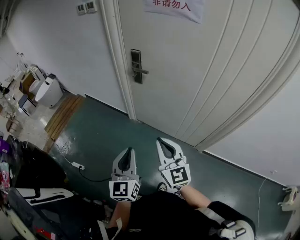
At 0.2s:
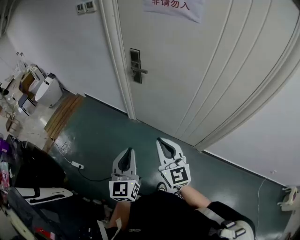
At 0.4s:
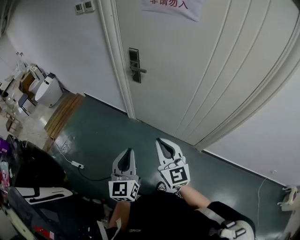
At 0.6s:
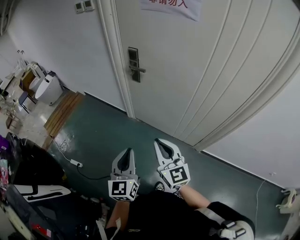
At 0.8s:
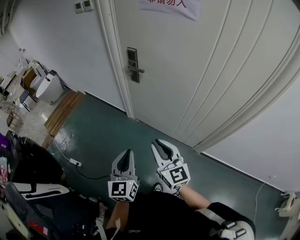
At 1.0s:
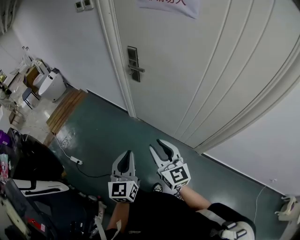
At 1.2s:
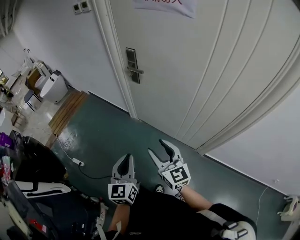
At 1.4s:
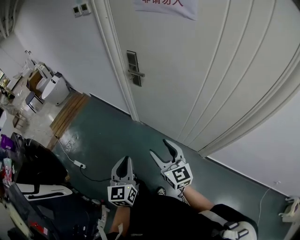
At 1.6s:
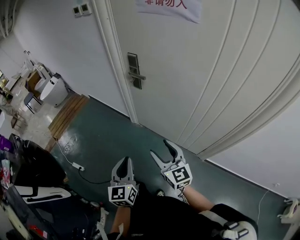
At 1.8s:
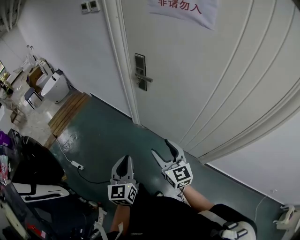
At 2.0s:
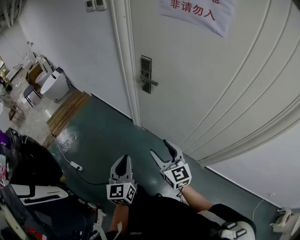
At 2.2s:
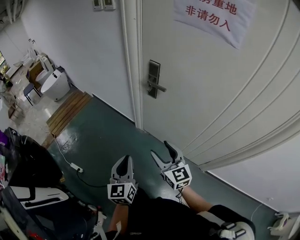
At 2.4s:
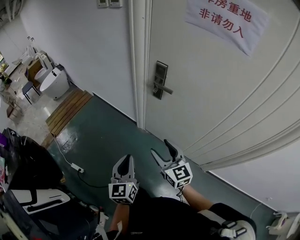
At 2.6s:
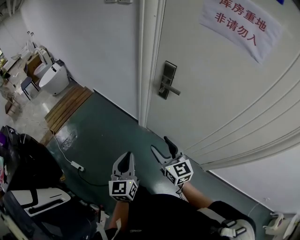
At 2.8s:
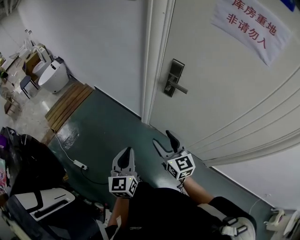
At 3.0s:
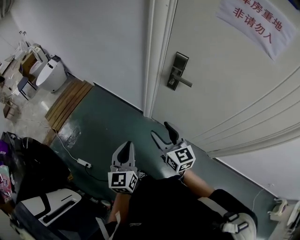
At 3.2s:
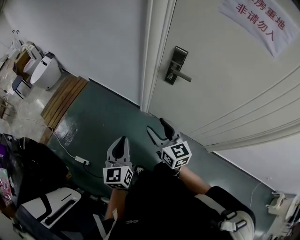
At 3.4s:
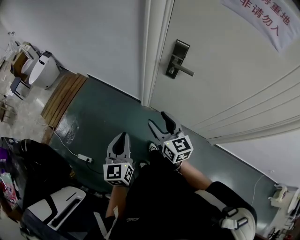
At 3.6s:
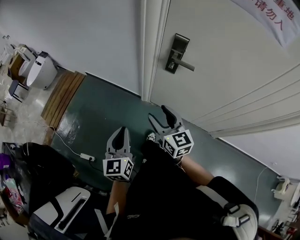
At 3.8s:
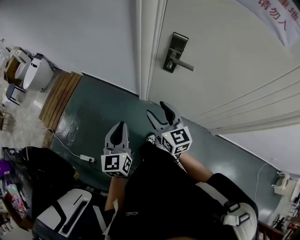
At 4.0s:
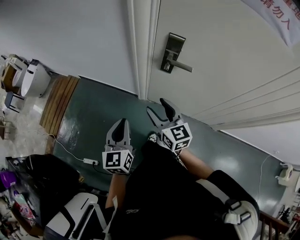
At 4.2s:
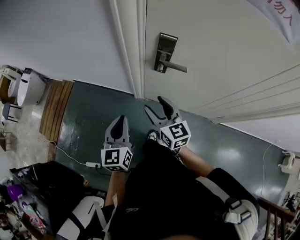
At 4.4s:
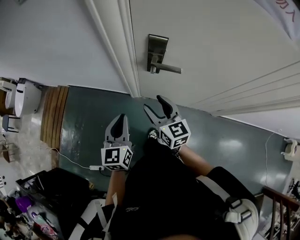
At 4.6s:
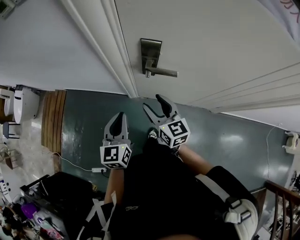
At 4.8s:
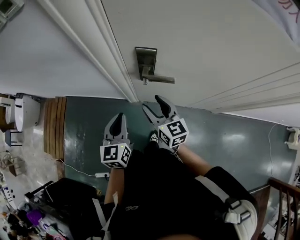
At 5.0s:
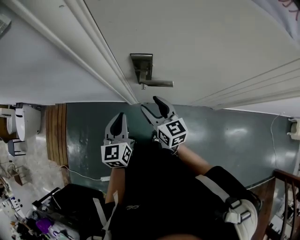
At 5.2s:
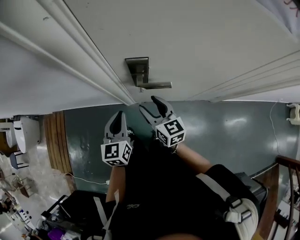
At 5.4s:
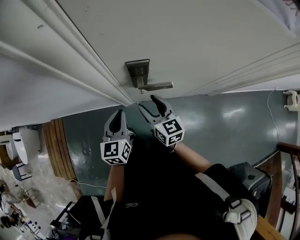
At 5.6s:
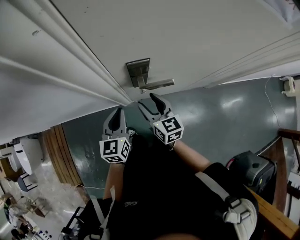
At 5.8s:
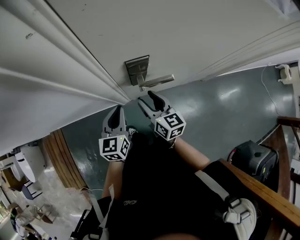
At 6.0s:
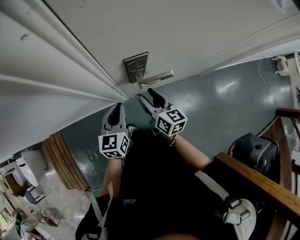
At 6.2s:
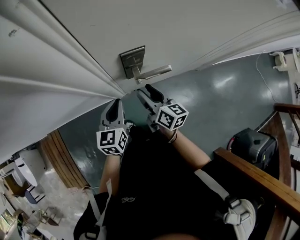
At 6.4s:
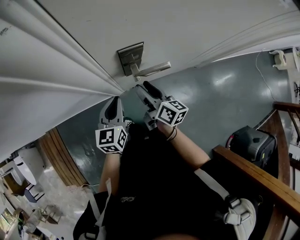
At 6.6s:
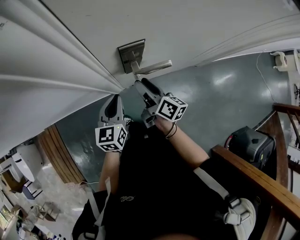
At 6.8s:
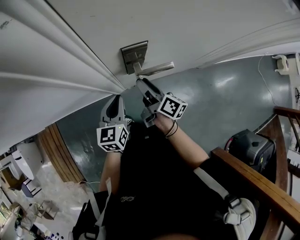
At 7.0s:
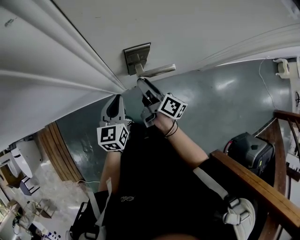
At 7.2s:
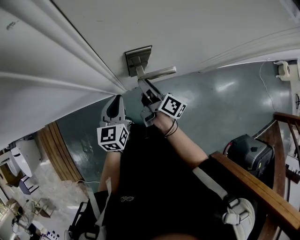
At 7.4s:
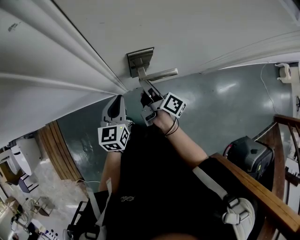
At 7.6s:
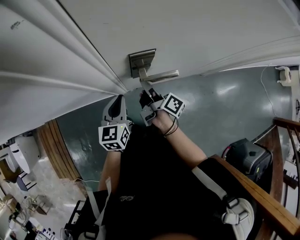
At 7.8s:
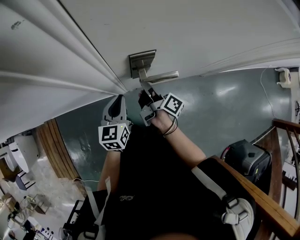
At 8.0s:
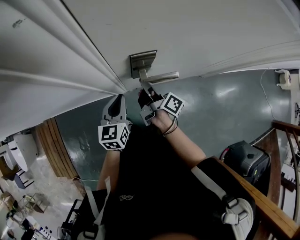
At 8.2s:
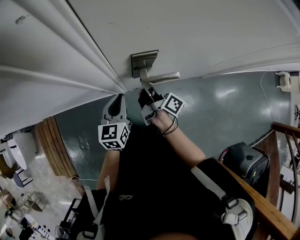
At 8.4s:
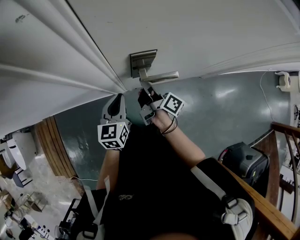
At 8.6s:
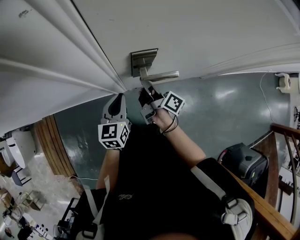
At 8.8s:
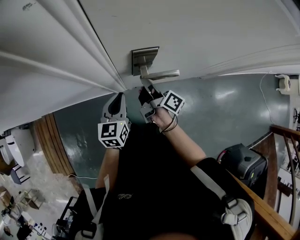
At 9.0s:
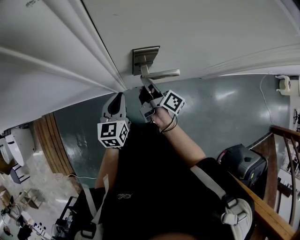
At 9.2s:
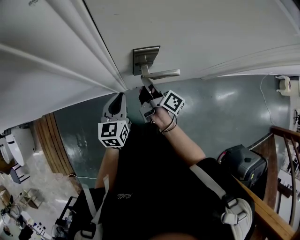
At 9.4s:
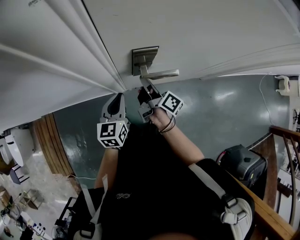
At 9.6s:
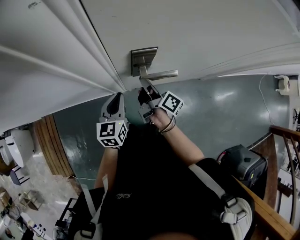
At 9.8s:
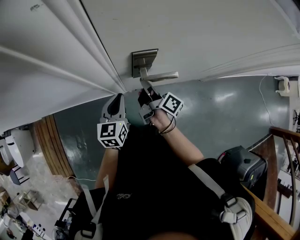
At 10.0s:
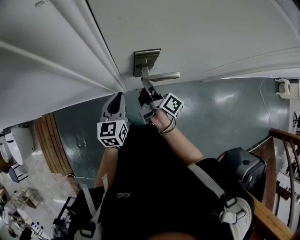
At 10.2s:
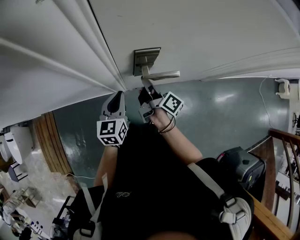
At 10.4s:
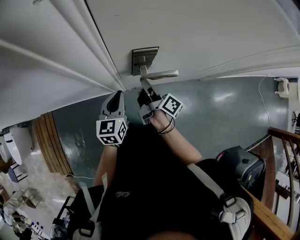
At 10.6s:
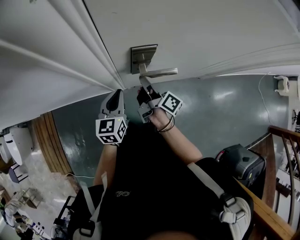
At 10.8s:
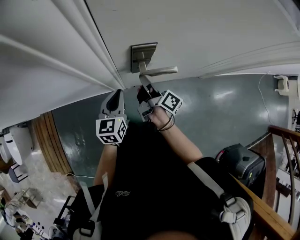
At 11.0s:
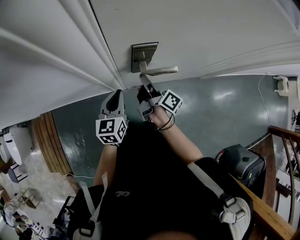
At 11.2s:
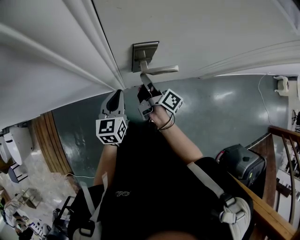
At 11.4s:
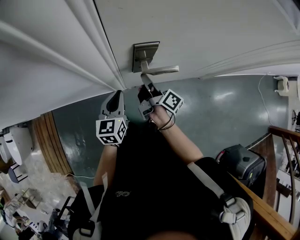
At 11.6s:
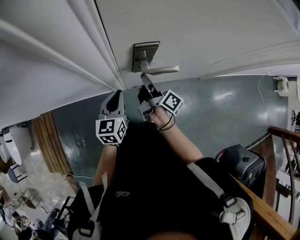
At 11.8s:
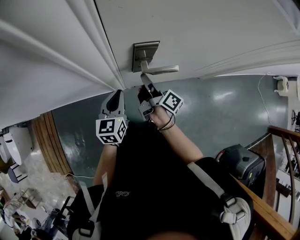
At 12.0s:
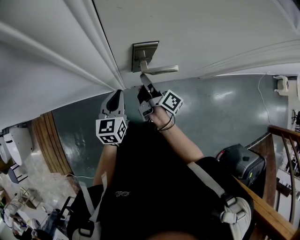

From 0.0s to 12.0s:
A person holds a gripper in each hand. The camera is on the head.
From 0.0s to 1.6s: The right gripper goes roughly 10 cm downward, to the right and forward, and opens, while the left gripper travels downward by about 5 cm.
From 1.6s to 3.0s: Both grippers travel together forward and to the left, some 30 cm.
From 3.0s to 4.4s: Both grippers move forward, some 20 cm. The left gripper swivels roughly 20 degrees. Meanwhile the right gripper rotates about 20 degrees.
From 4.4s to 6.0s: The right gripper ends up some 15 cm from where it was, and turns by some 40 degrees. The left gripper moves about 20 cm, and swivels roughly 30 degrees.
From 6.0s to 7.6s: The right gripper ends up about 5 cm from where it was, and rotates around the line of its fingers by about 50 degrees, clockwise from behind.
From 7.6s to 9.0s: The right gripper closes.
From 9.0s to 10.4s: Both grippers stay put.
From 10.4s to 12.0s: Both grippers stay put.

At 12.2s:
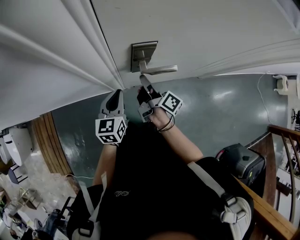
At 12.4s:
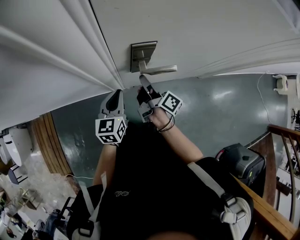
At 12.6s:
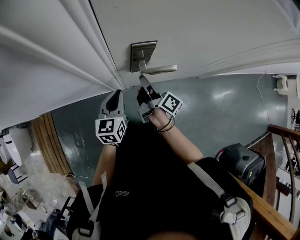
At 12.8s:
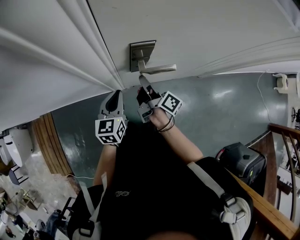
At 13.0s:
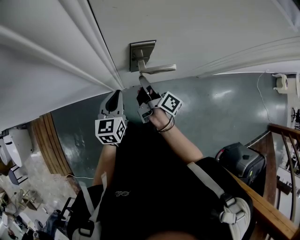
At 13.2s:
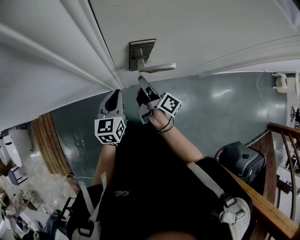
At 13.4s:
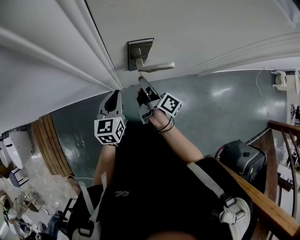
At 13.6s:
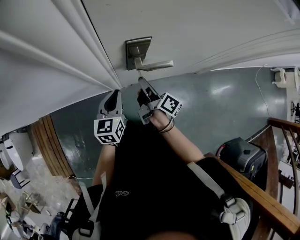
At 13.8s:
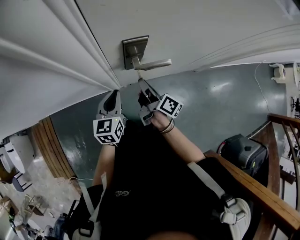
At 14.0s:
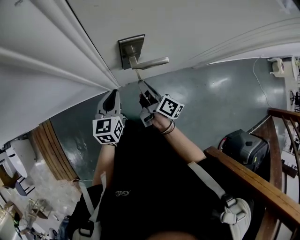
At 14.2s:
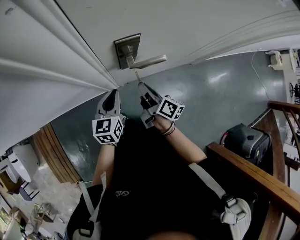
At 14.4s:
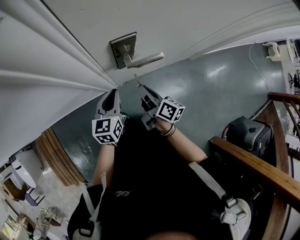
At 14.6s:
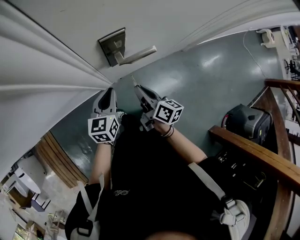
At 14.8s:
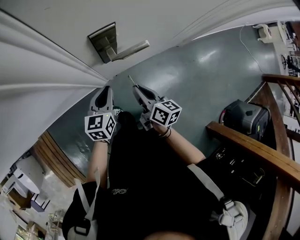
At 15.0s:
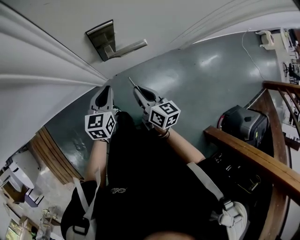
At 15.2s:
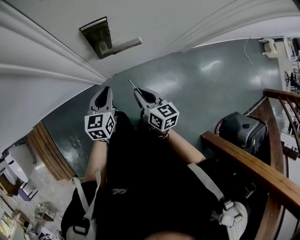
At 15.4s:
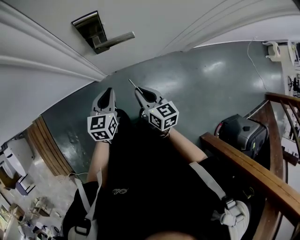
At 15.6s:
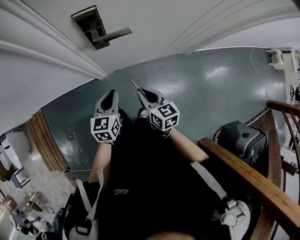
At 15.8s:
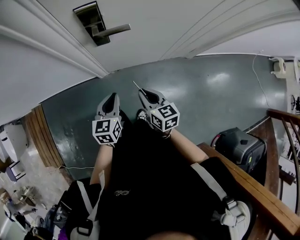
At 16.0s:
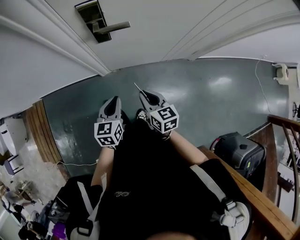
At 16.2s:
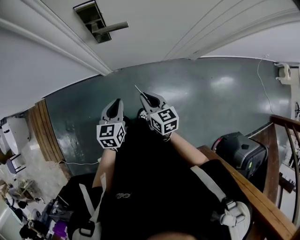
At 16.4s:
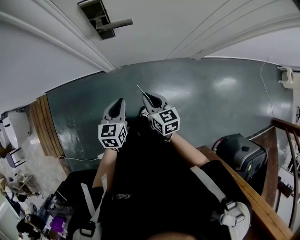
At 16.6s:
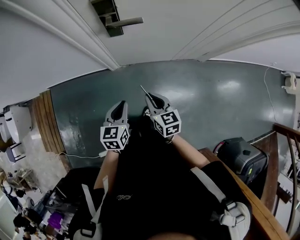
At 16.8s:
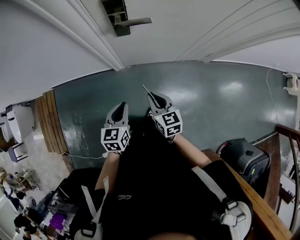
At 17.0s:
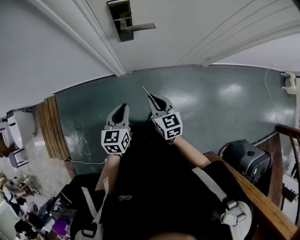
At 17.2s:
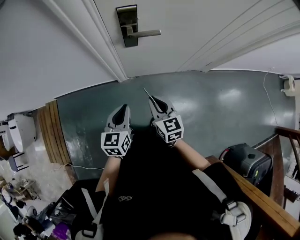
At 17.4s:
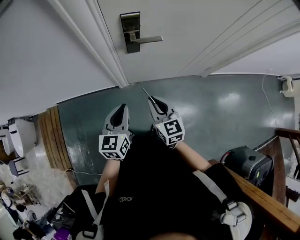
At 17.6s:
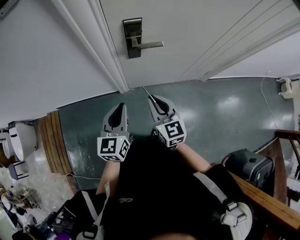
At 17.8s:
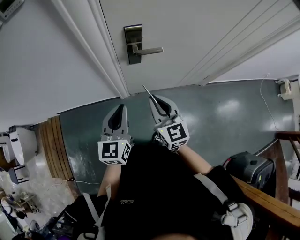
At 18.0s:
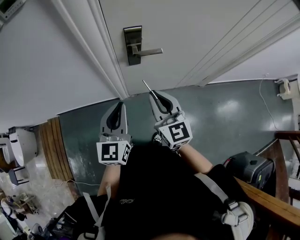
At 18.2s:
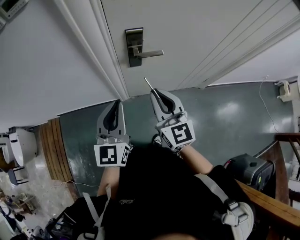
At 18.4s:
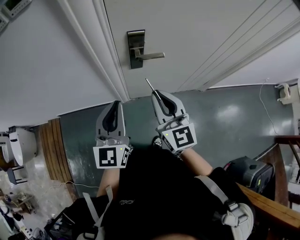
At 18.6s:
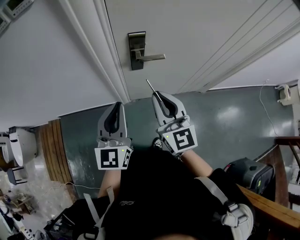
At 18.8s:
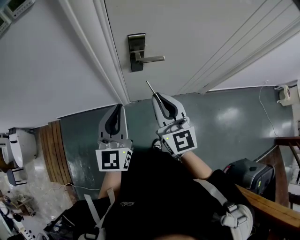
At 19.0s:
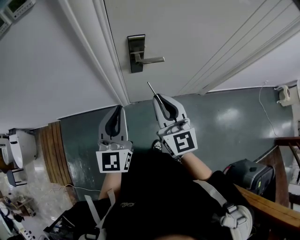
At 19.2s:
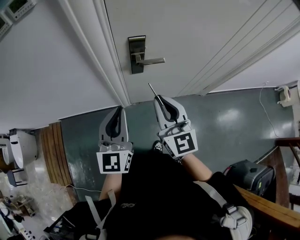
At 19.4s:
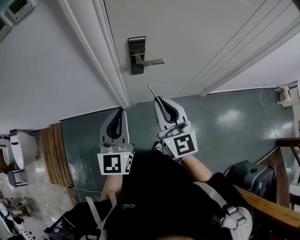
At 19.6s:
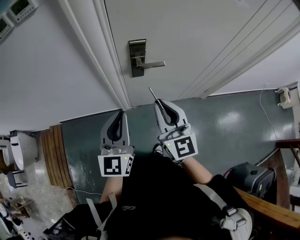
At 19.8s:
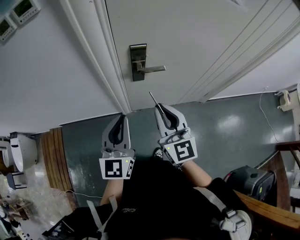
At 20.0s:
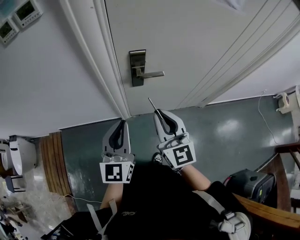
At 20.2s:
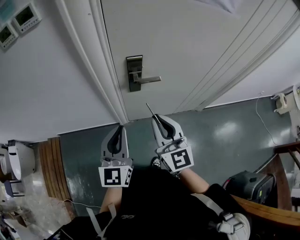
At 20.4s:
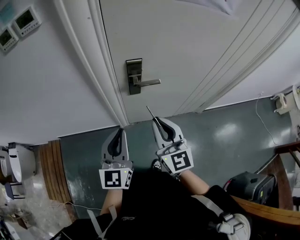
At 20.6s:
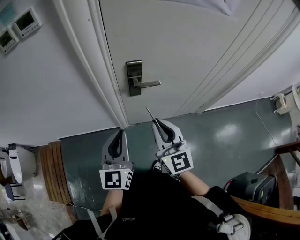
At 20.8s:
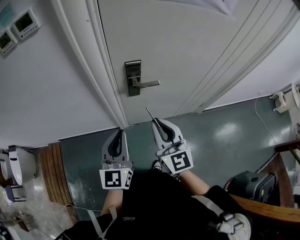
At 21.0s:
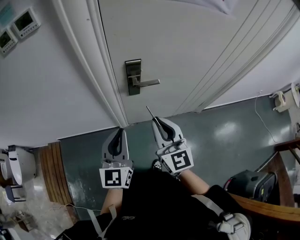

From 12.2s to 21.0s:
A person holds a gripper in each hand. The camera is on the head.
From 12.2s to 13.6s: The grippers make only small movements.
From 13.6s to 15.2s: The right gripper goes about 15 cm backward and to the right, and twists roughly 40 degrees counterclockwise, seen from behind. Meanwhile the left gripper goes roughly 10 cm to the right and backward.
From 15.2s to 16.6s: The right gripper moves backward and to the right, about 15 cm, while the left gripper travels backward by roughly 20 cm.
From 16.6s to 18.0s: The right gripper goes about 20 cm upward, and turns by roughly 30 degrees; the left gripper is displaced upward and to the left by approximately 25 cm, and swivels about 30 degrees.
From 18.0s to 19.6s: The right gripper shifts approximately 5 cm upward.
From 19.6s to 21.0s: Both grippers stay about where they are.

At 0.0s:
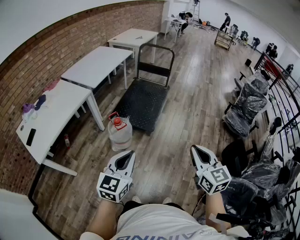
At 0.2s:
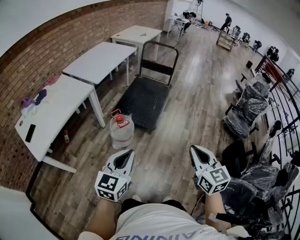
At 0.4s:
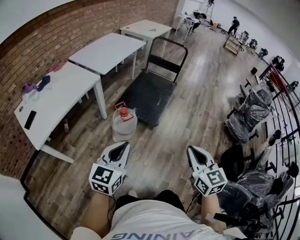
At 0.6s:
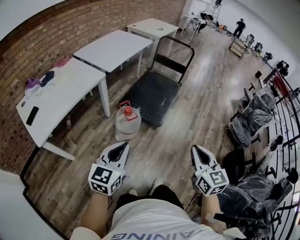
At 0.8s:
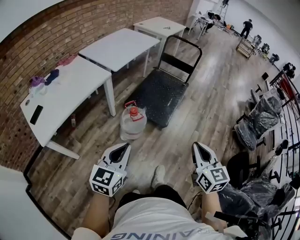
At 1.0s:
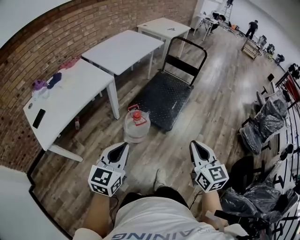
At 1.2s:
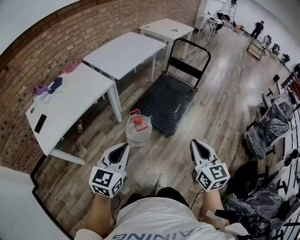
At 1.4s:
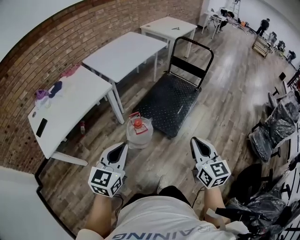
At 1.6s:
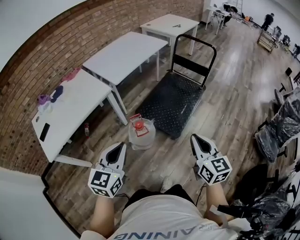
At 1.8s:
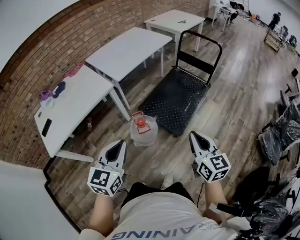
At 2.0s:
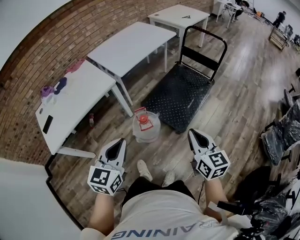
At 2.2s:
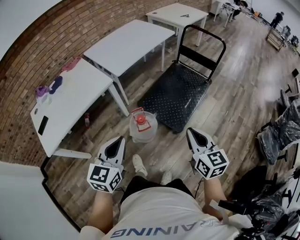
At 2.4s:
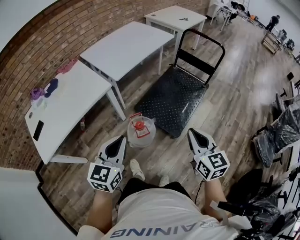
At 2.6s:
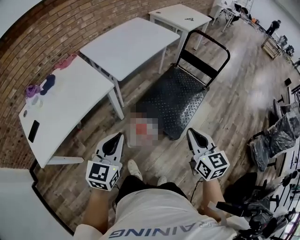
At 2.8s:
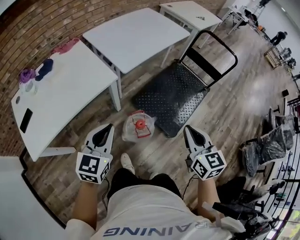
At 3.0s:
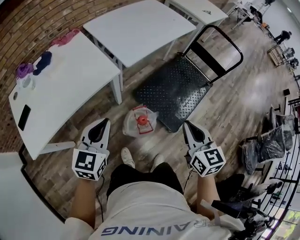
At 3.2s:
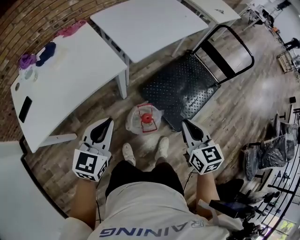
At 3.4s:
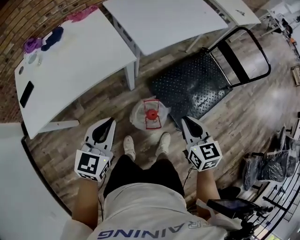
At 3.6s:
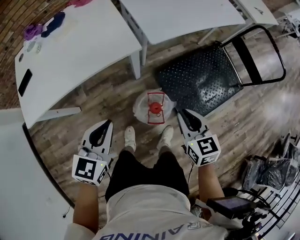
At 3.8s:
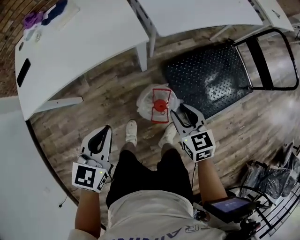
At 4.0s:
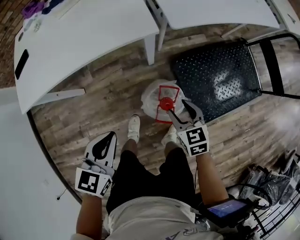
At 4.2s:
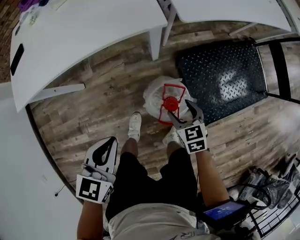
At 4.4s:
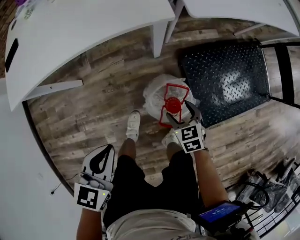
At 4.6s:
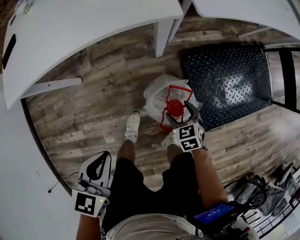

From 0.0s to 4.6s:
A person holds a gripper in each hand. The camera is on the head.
From 0.0s to 1.6s: The right gripper shifts about 30 cm forward, while the left gripper moves forward and to the left, approximately 25 cm, and changes its angle by roughly 20 degrees.
From 1.6s to 3.0s: Both grippers travel together forward and to the left, some 25 cm.
From 3.0s to 4.6s: The left gripper moves downward, approximately 25 cm, and rotates about 40 degrees. The right gripper goes approximately 50 cm downward, tilts its fingers roughly 30 degrees downward, and opens up.
